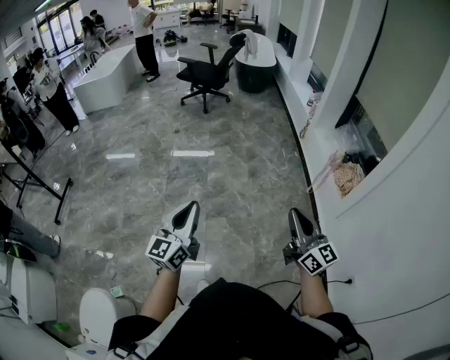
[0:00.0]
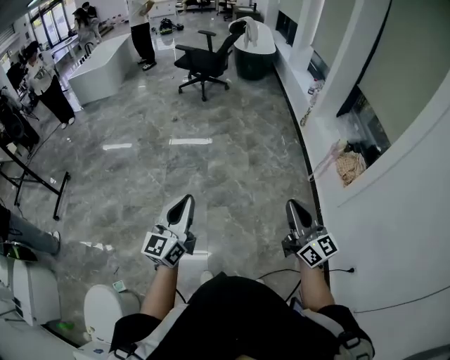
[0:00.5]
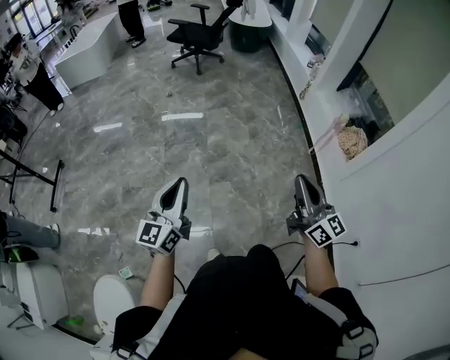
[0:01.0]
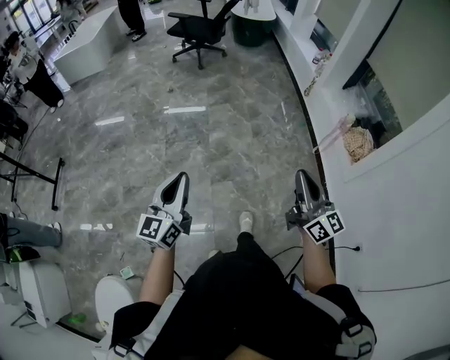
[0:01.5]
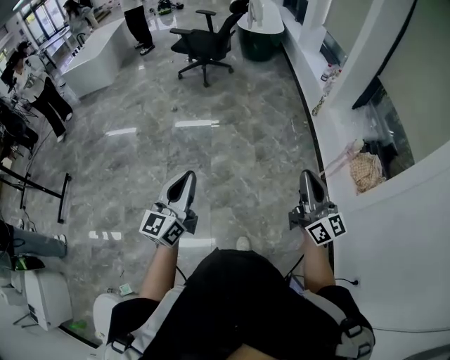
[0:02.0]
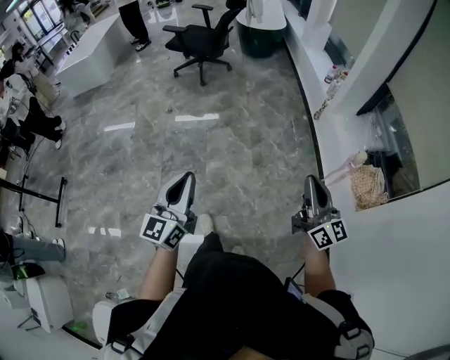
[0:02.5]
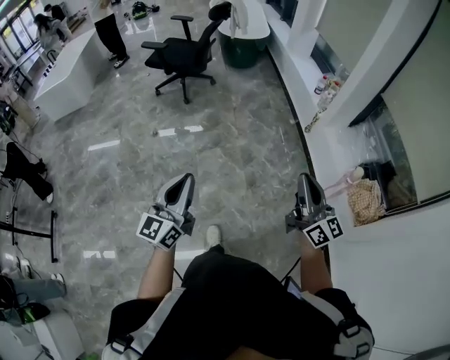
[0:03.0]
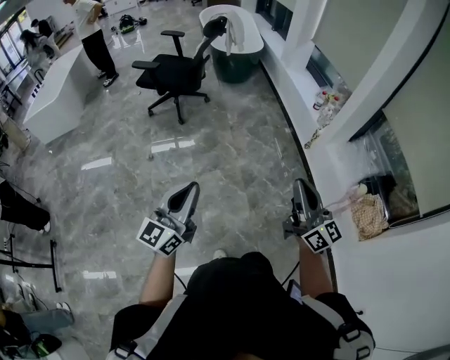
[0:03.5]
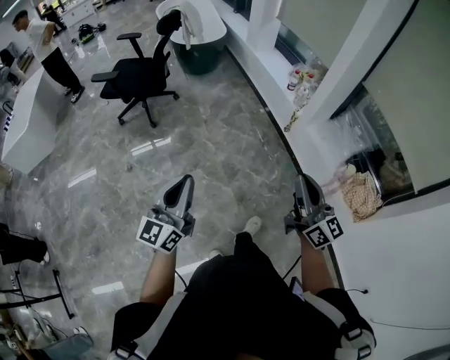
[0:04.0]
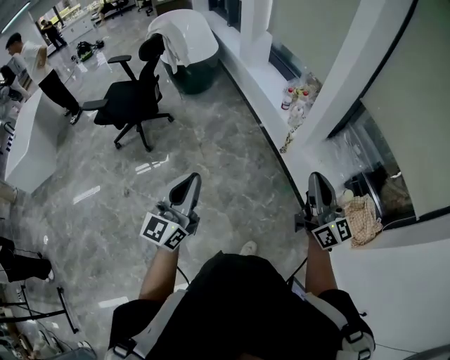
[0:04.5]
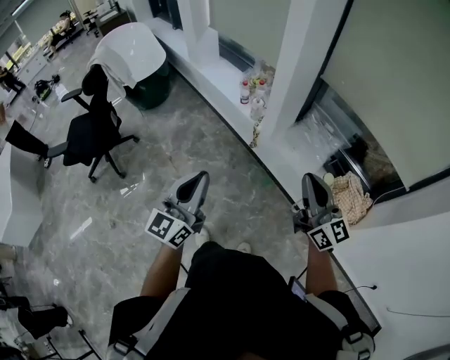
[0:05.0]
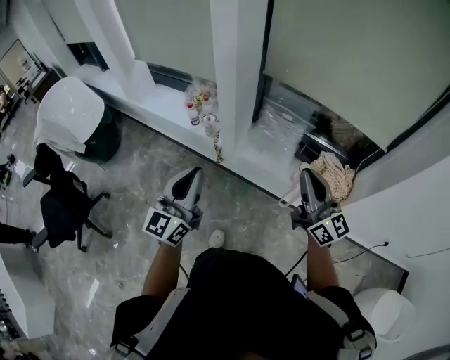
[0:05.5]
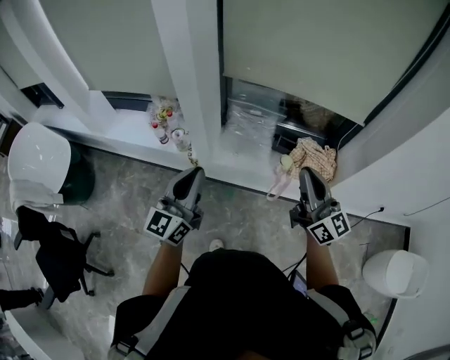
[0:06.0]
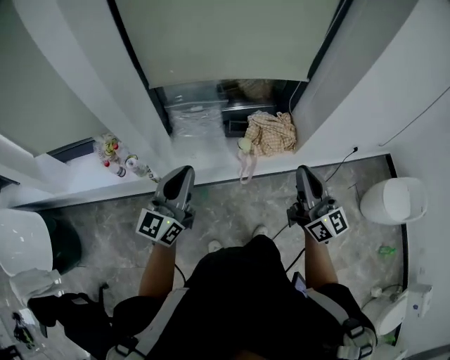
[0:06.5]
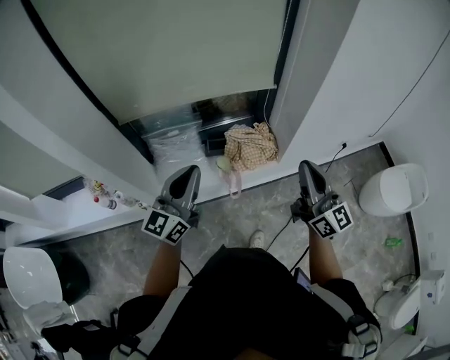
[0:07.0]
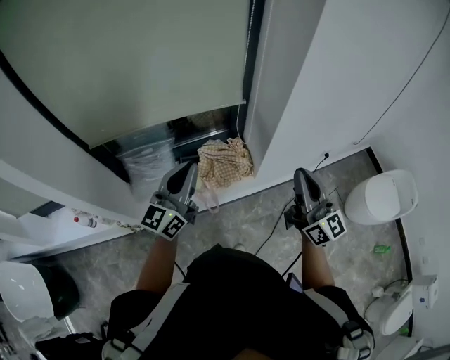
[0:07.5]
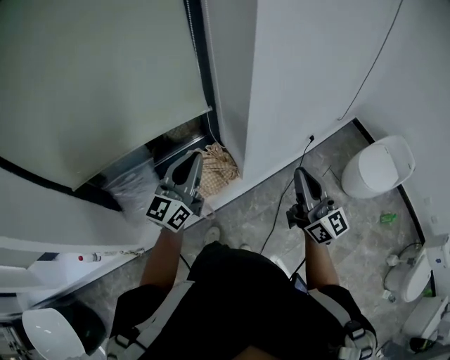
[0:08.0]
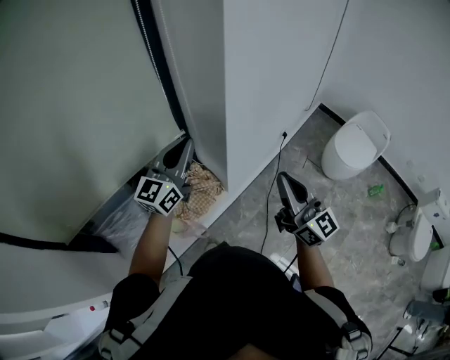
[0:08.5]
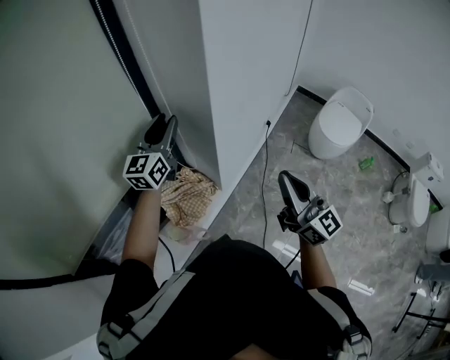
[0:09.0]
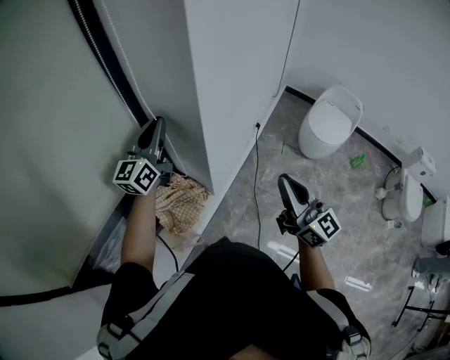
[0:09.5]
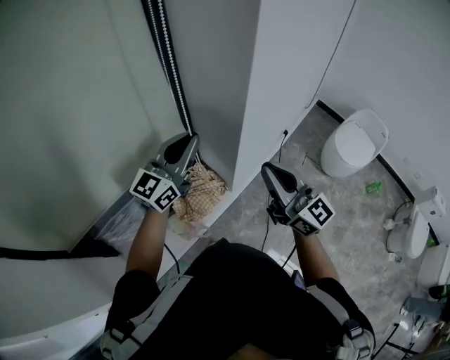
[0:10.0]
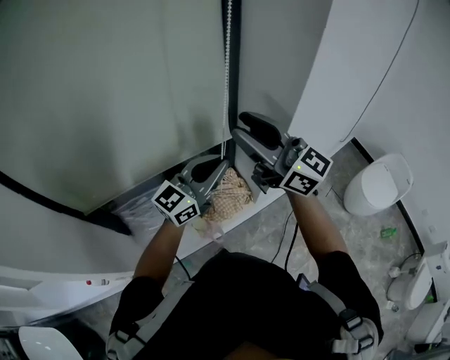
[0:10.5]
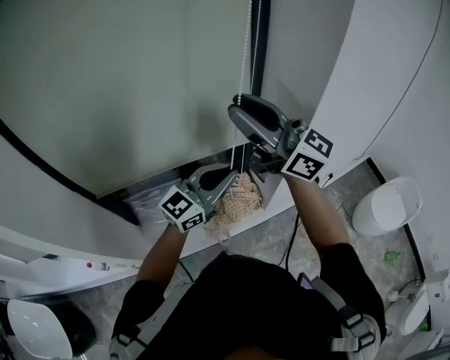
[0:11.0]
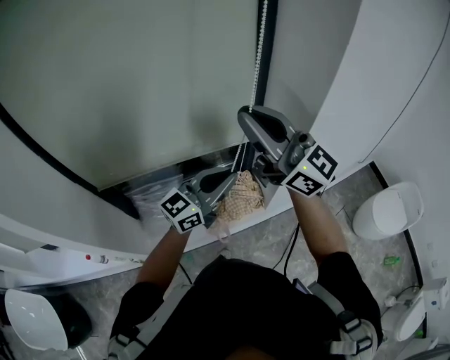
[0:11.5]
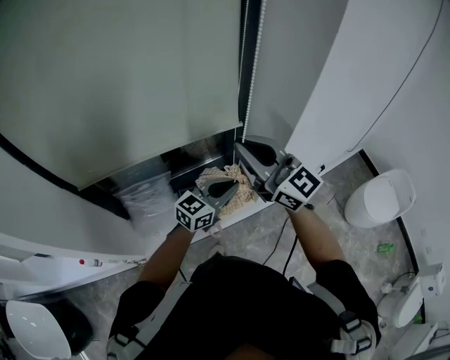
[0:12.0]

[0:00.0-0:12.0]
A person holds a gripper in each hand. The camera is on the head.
0:00.0 to 0:02.0: Both grippers travel together forward, approximately 20 cm.
0:02.0 to 0:04.0: Both grippers are carried forward, roughly 40 cm. The left gripper rotates some 20 degrees.
0:04.0 to 0:06.0: The right gripper changes place by some 35 cm, and rotates roughly 50 degrees; the left gripper moves approximately 60 cm, and rotates approximately 60 degrees.
0:06.0 to 0:08.0: The right gripper moves approximately 40 cm, and turns by some 40 degrees. The left gripper moves some 50 cm, and rotates roughly 50 degrees.
0:08.0 to 0:10.0: The left gripper shifts approximately 15 cm forward, changes its angle by some 20 degrees, and opens, then closes again. Meanwhile the right gripper moves to the left, approximately 10 cm.
0:10.0 to 0:12.0: The right gripper is displaced to the left and upward by about 15 cm, changes its angle by roughly 30 degrees, and opens, then closes once more. Meanwhile the left gripper travels downward and backward by approximately 15 cm, and changes its angle by roughly 20 degrees.

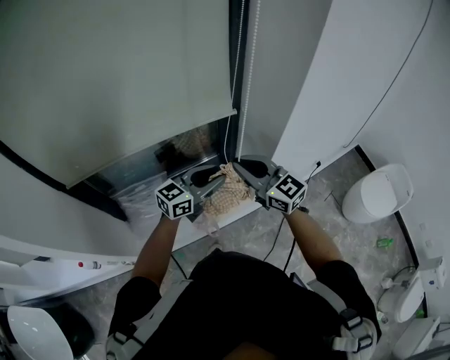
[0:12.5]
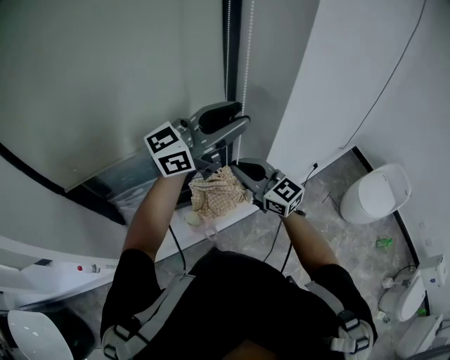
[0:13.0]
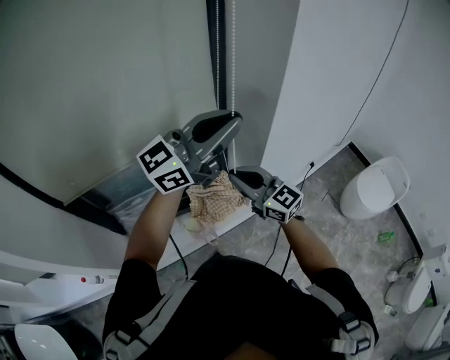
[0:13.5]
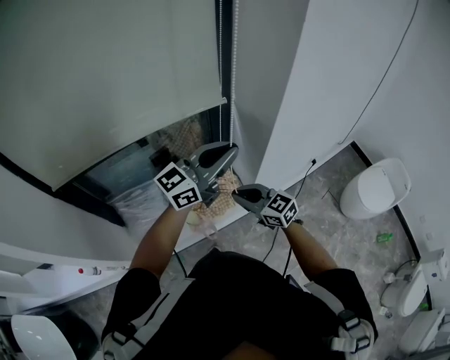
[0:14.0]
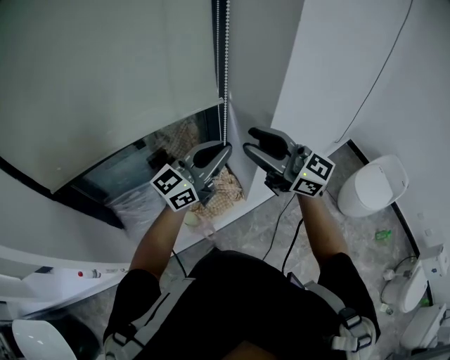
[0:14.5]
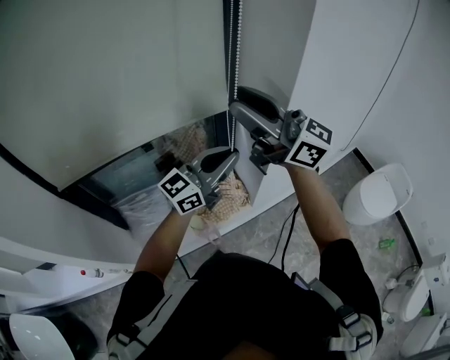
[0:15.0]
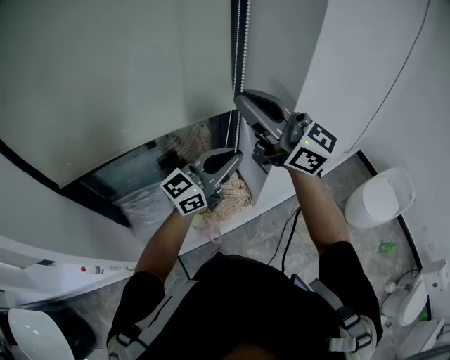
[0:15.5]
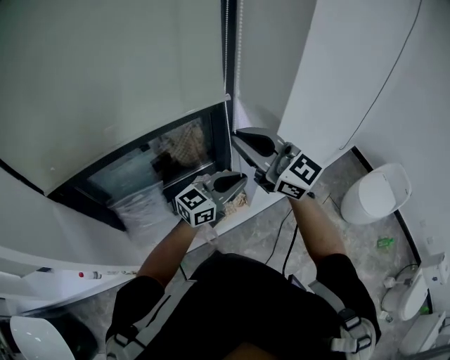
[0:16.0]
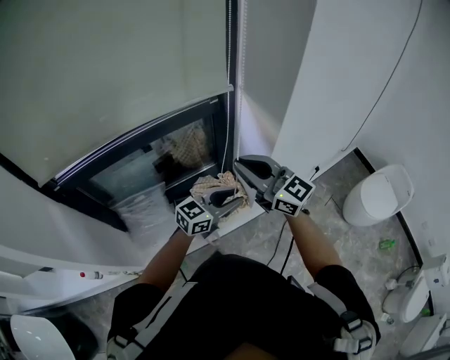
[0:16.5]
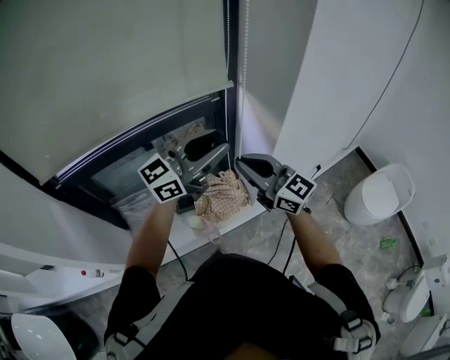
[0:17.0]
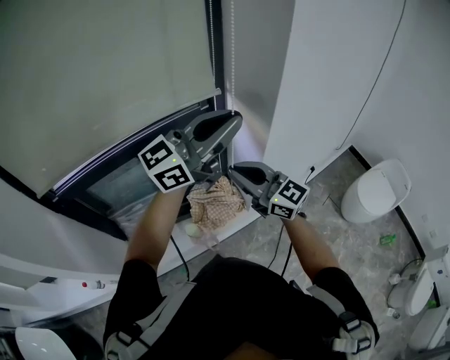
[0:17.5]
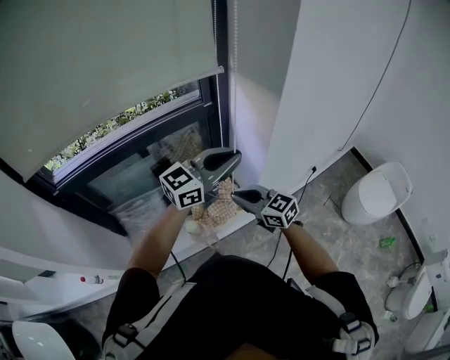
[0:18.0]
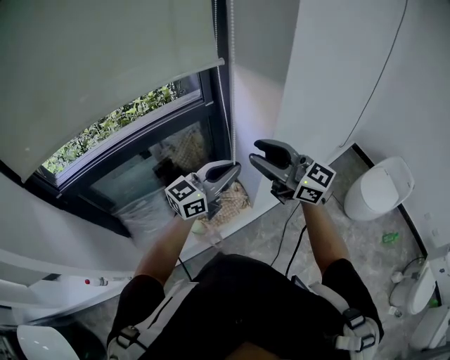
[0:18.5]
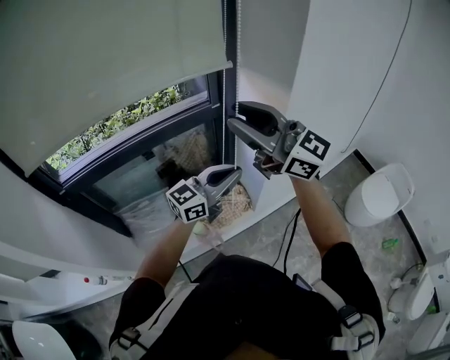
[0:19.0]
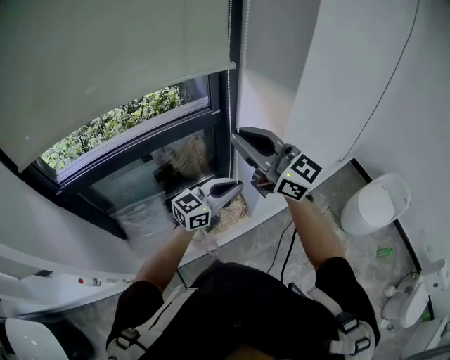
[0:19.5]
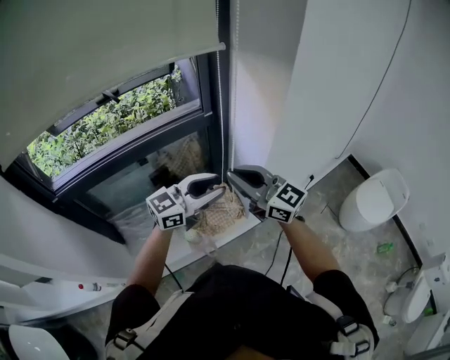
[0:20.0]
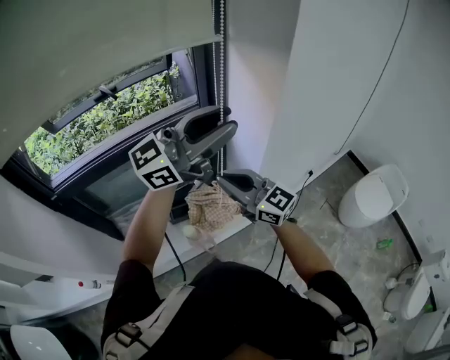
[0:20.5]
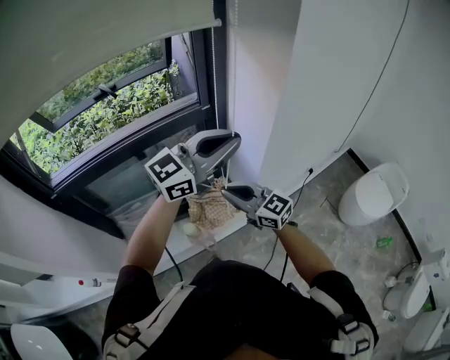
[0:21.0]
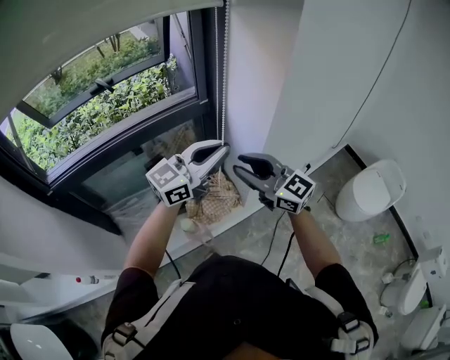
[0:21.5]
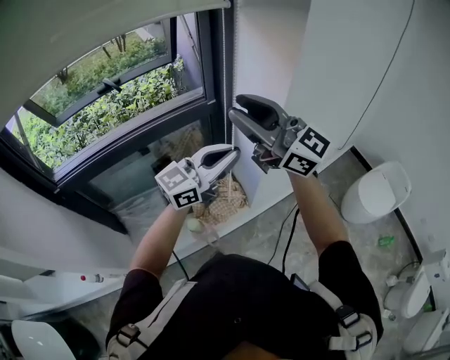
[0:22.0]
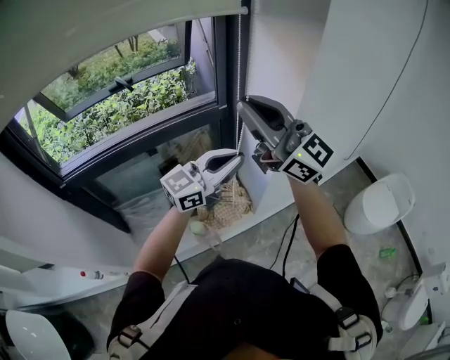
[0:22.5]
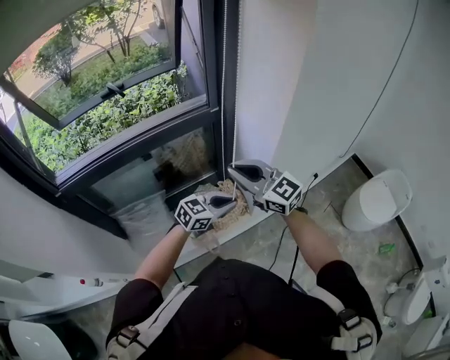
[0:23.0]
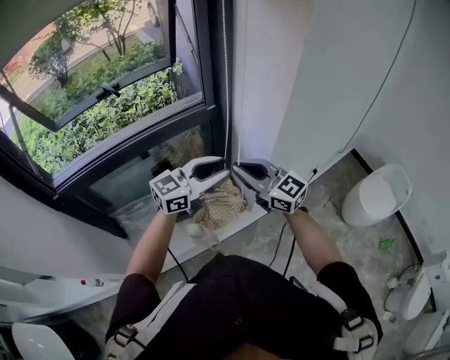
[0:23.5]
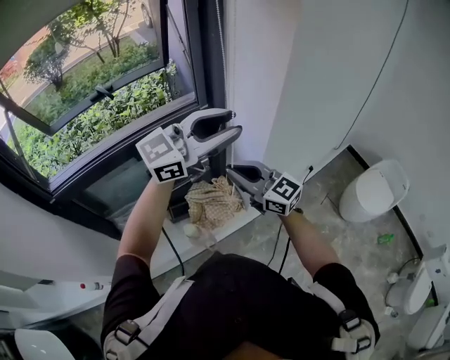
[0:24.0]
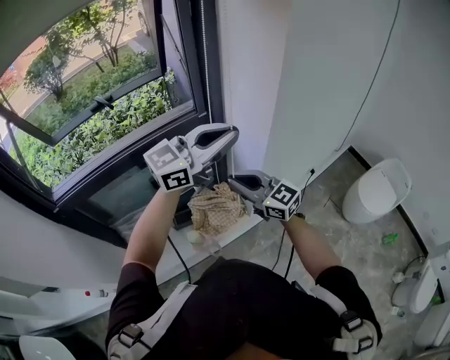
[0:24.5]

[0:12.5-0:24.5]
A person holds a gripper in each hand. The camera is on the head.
0:12.5 to 0:14.5: The left gripper moves upward, about 15 cm, and closes up. Meanwhile the right gripper moves upward and to the right, approximately 15 cm, and opens.
0:14.5 to 0:16.5: The left gripper is displaced downward by some 20 cm, rotates roughly 20 degrees, and opens its fingers; the right gripper travels downward by approximately 5 cm, and closes.
0:16.5 to 0:18.5: The right gripper travels downward and back again, roughly 15 cm each way, and opens. Meanwhile the left gripper heads upward, covering about 10 cm, and closes.
0:18.5 to 0:20.5: The right gripper moves roughly 10 cm upward and comes back, and closes. The left gripper goes some 20 cm upward, changes its angle by about 20 degrees, and opens up.
0:20.5 to 0:22.5: The right gripper moves upward, roughly 20 cm, changes its angle by some 20 degrees, and opens, then closes once more. The left gripper travels downward by roughly 15 cm, and closes its fingers.
0:22.5 to 0:24.5: The left gripper moves about 20 cm downward and comes back, and opens, then closes again. Meanwhile the right gripper moves downward, some 25 cm, and rotates about 30 degrees.

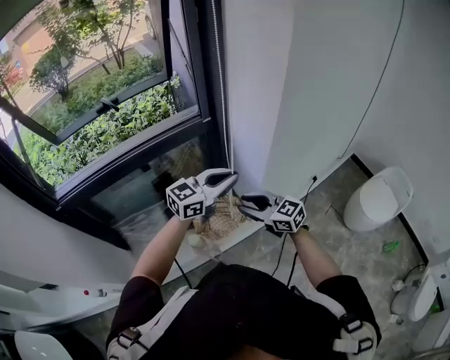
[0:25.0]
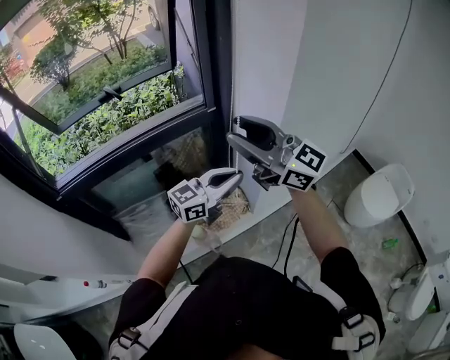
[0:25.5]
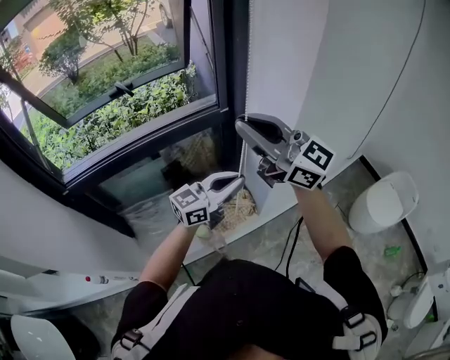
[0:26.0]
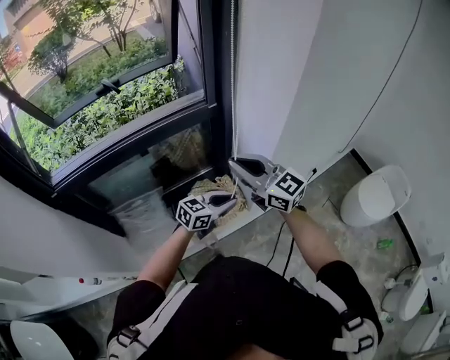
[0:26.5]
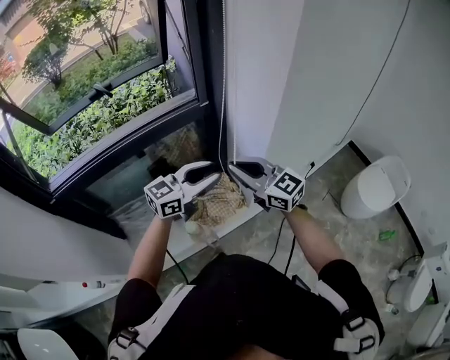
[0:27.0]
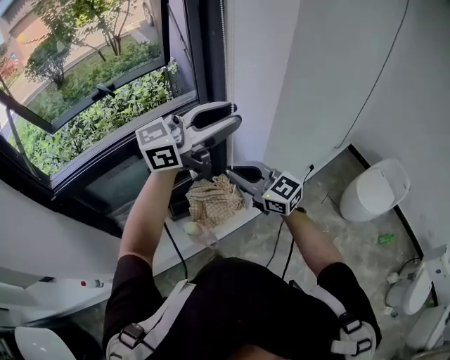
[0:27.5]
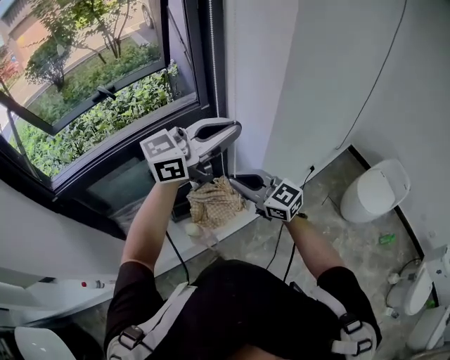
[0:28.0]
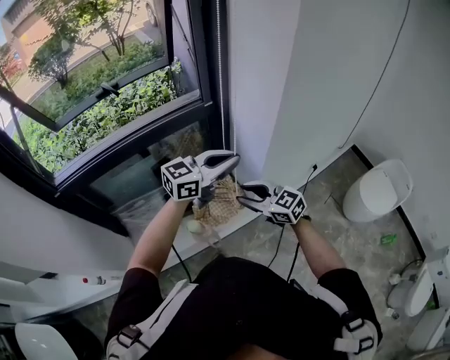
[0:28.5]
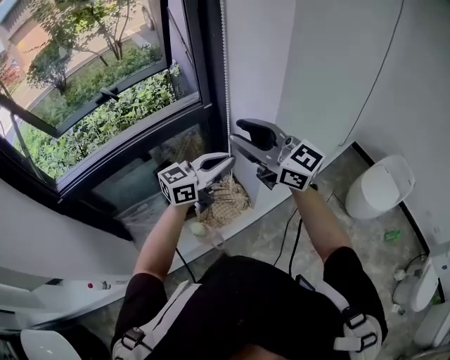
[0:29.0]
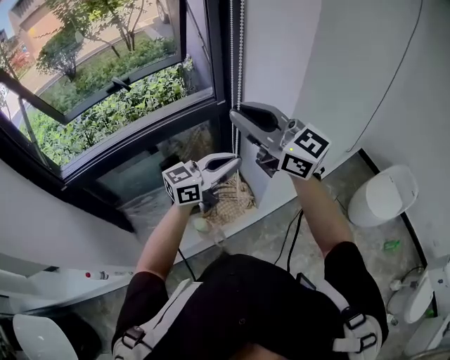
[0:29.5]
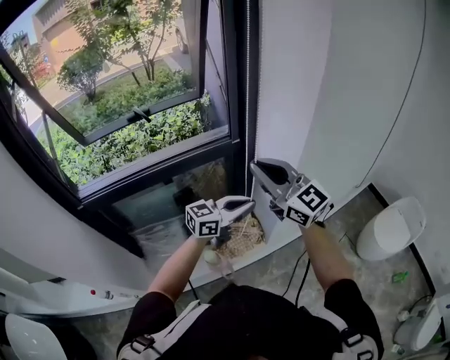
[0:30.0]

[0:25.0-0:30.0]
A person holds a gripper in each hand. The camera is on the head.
0:25.0 to 0:27.5: The right gripper travels upward by approximately 10 cm, and closes. The left gripper is displaced upward by some 20 cm, and opens its fingers.
0:27.5 to 0:30.0: The left gripper travels downward by approximately 20 cm, rotates approximately 20 degrees, and closes; the right gripper goes up and down, roughly 30 cm each way, reversing 2 times, and opens and closes again.
